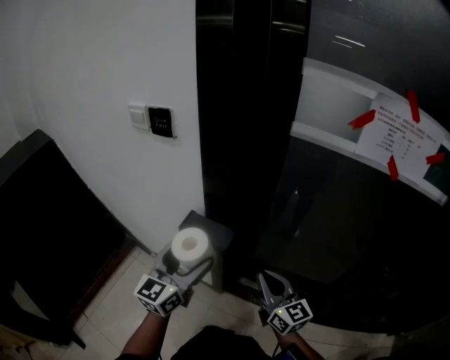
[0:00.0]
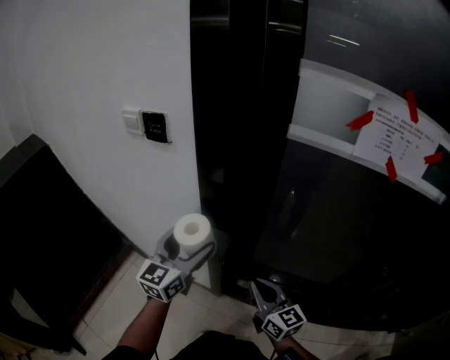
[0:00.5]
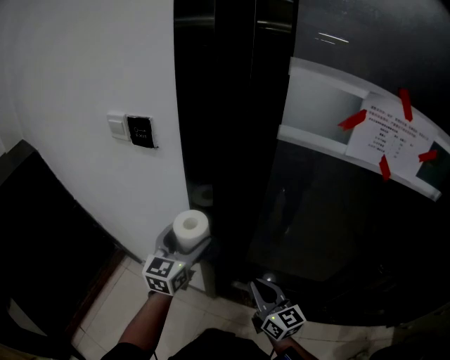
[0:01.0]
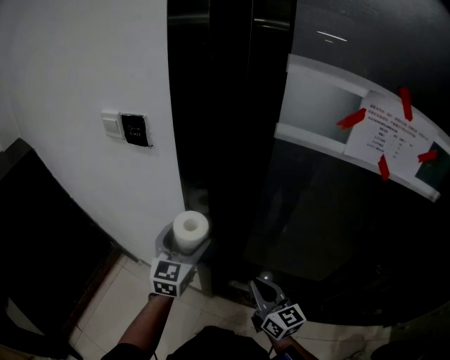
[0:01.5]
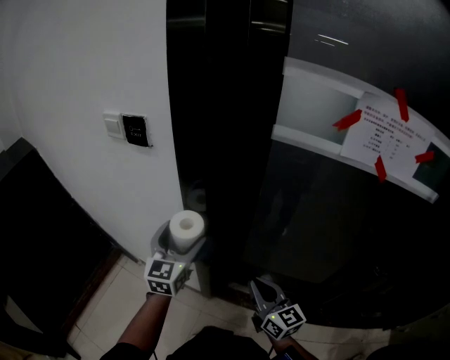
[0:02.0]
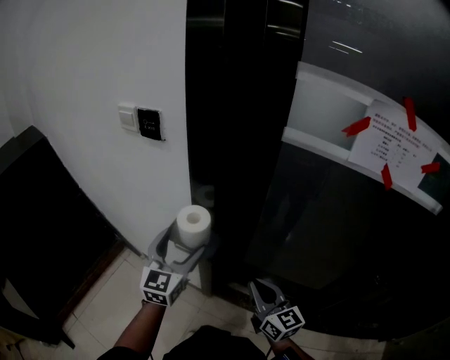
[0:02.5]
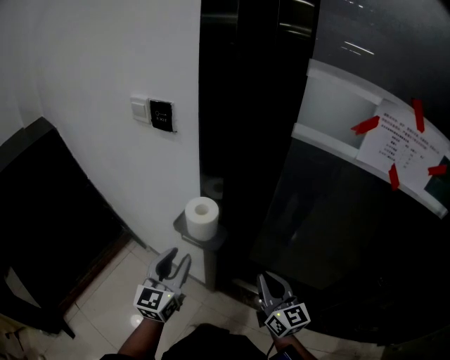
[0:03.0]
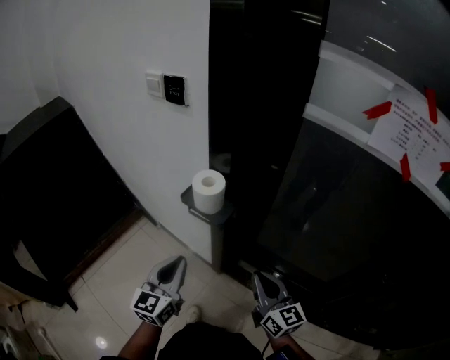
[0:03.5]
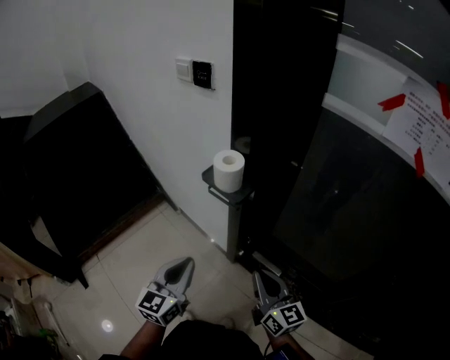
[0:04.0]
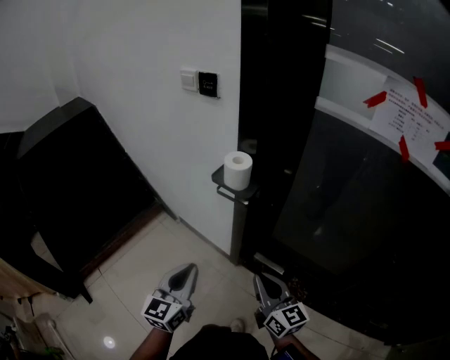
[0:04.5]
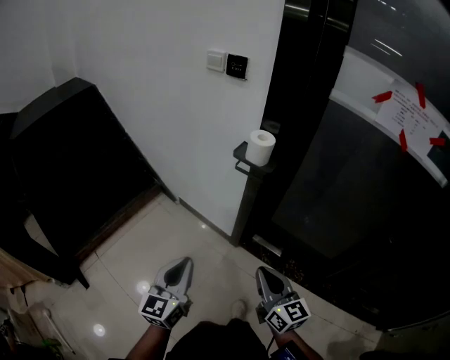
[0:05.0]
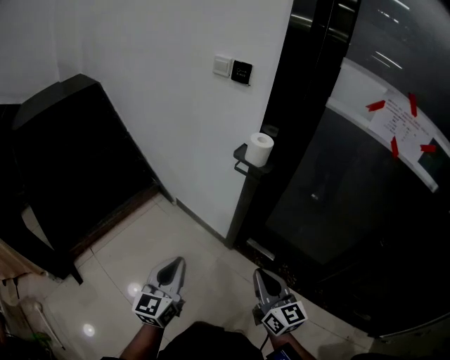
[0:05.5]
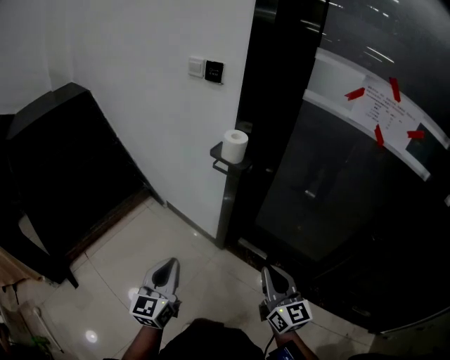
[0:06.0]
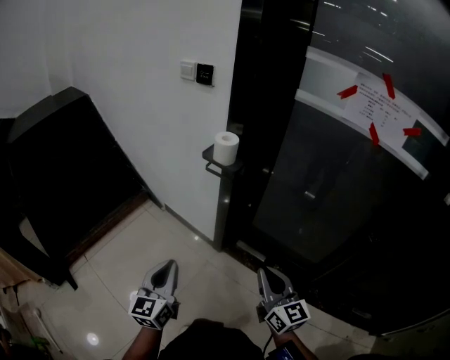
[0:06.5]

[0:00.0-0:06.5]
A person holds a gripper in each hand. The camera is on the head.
0:00.0 to 0:02.0: The left gripper goes roughly 10 cm forward.
0:02.0 to 0:04.5: The left gripper is displaced backward by about 30 cm, and closes its fingers. Meanwhile the right gripper is displaced backward and to the left by some 20 cm.
0:04.5 to 0:06.5: Both grippers travel together backward, about 10 cm. The left gripper moves approximately 10 cm to the left and comes back.

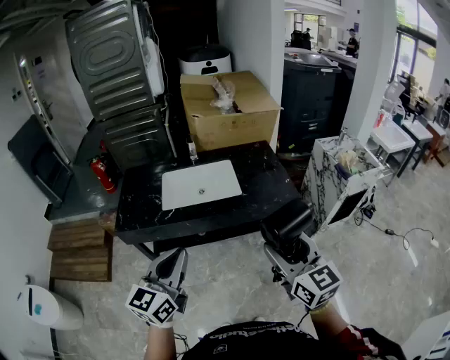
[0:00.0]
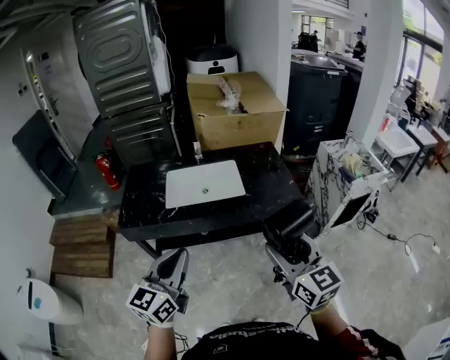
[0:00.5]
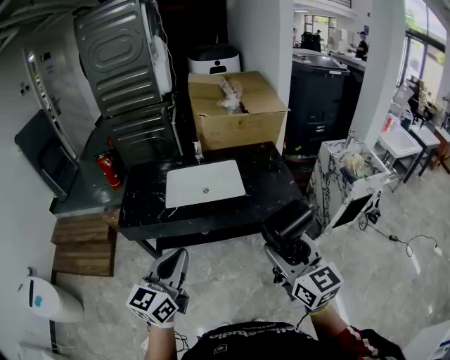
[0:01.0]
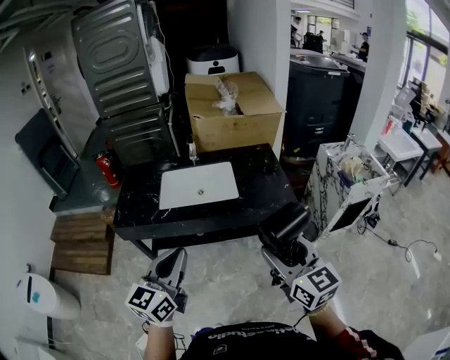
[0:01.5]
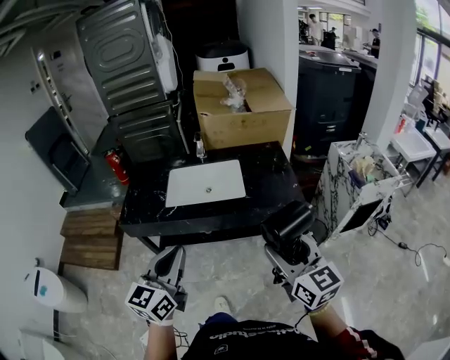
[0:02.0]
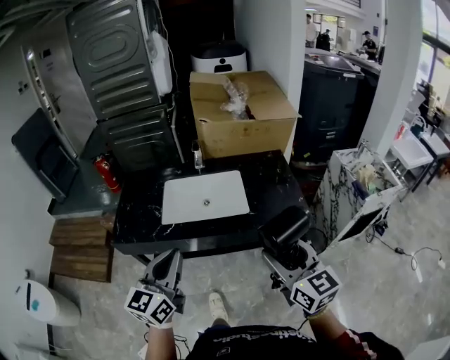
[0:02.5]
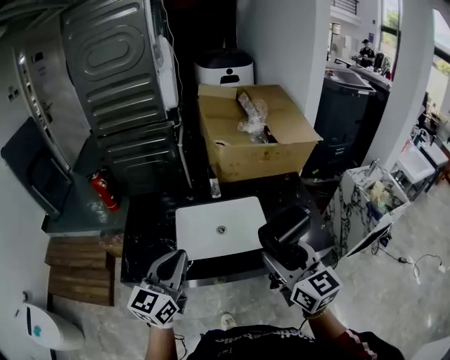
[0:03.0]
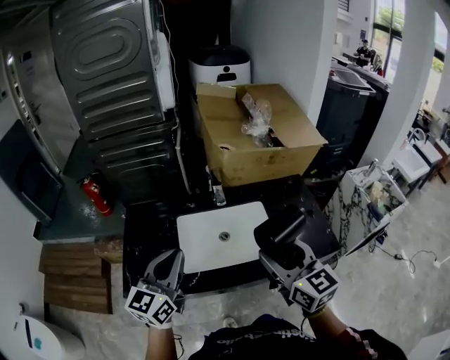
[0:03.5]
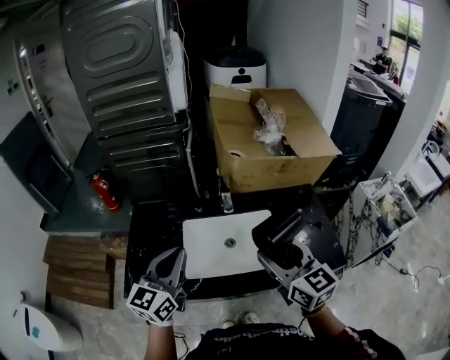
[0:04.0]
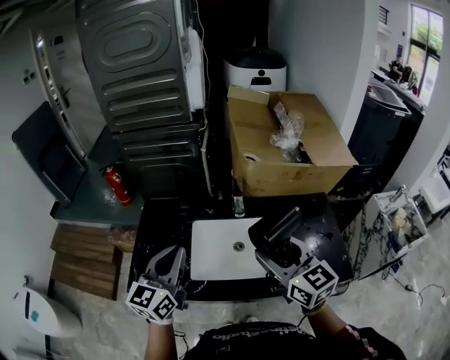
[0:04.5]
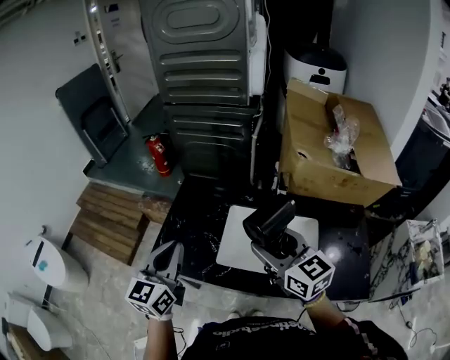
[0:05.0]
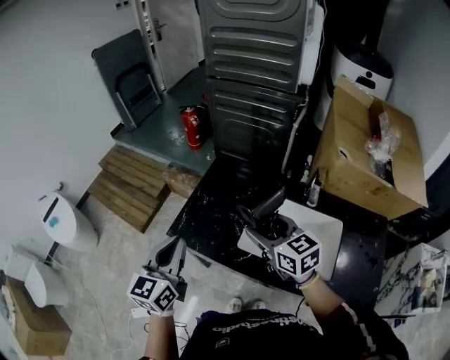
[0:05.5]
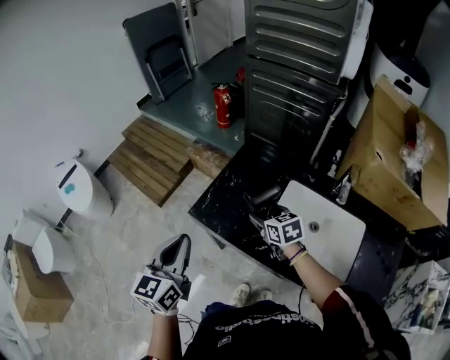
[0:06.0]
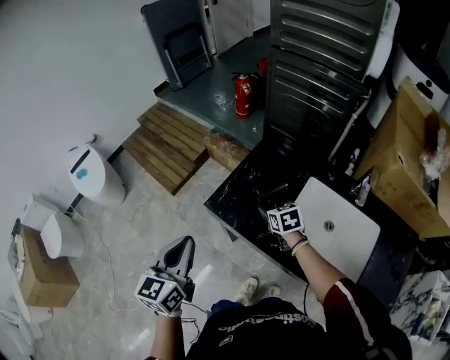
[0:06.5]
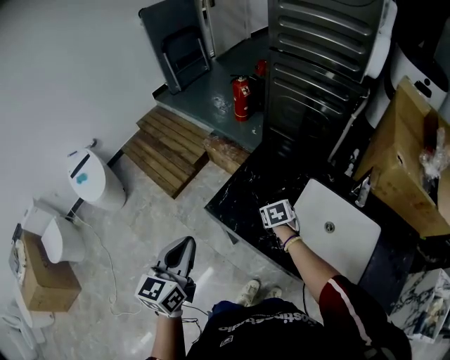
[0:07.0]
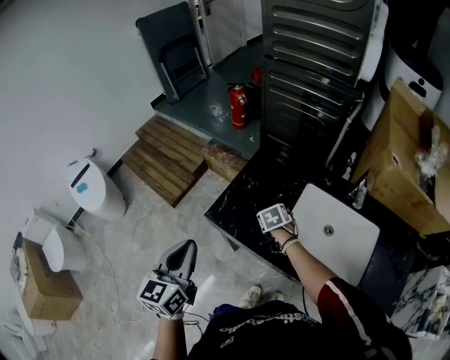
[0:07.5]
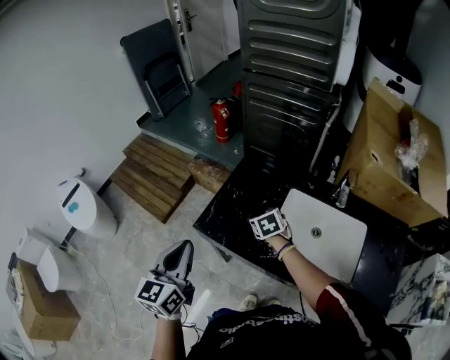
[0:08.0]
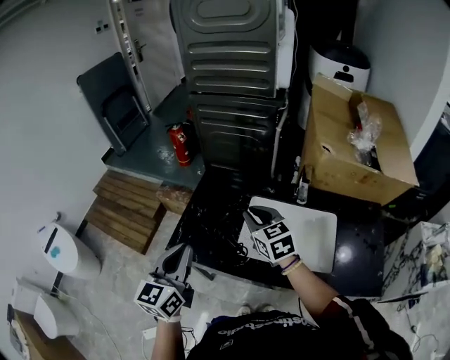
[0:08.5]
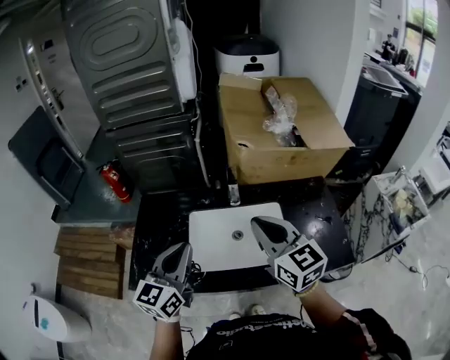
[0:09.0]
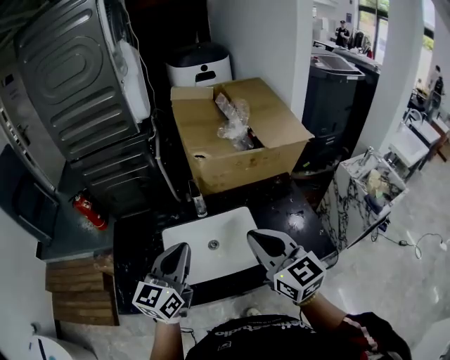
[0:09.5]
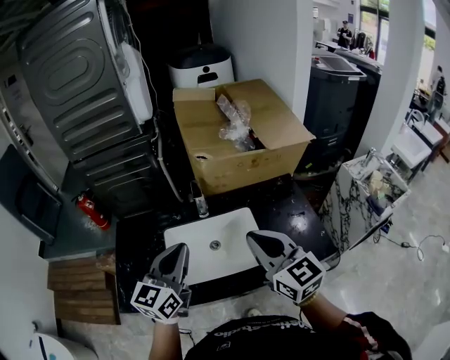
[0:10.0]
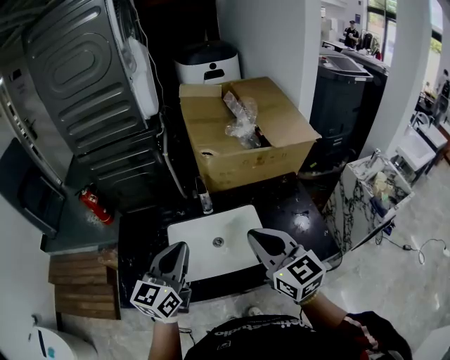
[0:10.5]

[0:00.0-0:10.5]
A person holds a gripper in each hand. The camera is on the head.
0:00.0 to 0:02.0: The grippers both shift to the right by approximately 5 cm.
0:02.0 to 0:04.0: The pair of grippers is taken forward and to the left, approximately 40 cm.
0:04.0 to 0:06.5: The right gripper ends up about 50 cm from where it was, and tilts its fingers roughly 40 degrees downward. The left gripper ends up roughly 35 cm from where it was, and turns by approximately 50 degrees.
0:06.5 to 0:08.5: The left gripper shifts some 15 cm to the right and upward, and changes its angle by about 20 degrees. The right gripper is displaced upward and to the right by about 25 cm, turns by roughly 30 degrees, and closes.
0:08.5 to 0:10.5: The left gripper shifts by roughly 30 cm, and rotates some 30 degrees; the right gripper moves some 35 cm, and rotates about 30 degrees.

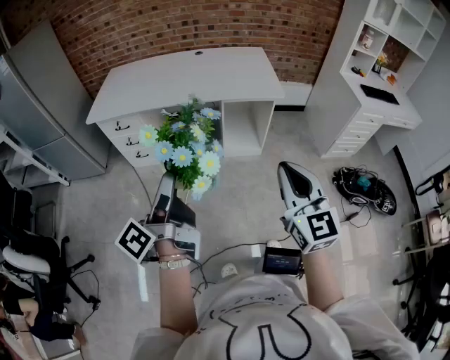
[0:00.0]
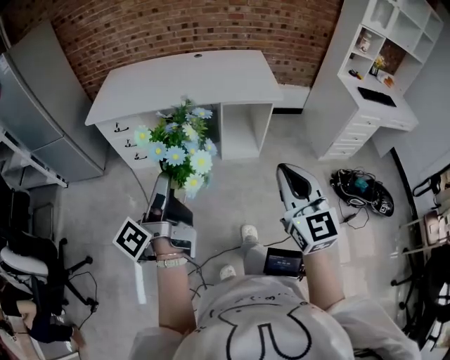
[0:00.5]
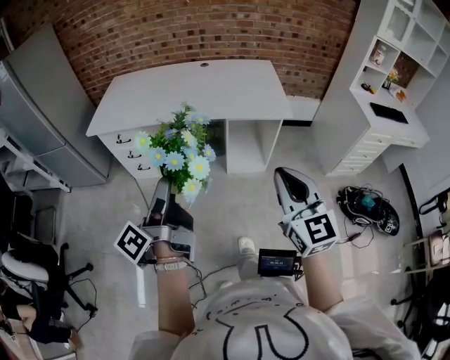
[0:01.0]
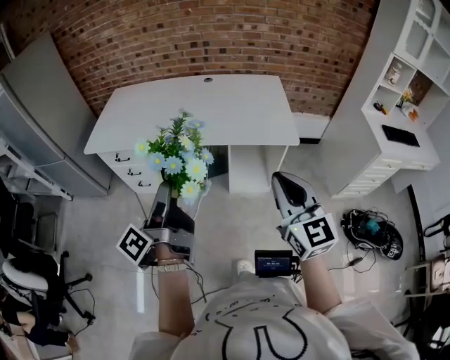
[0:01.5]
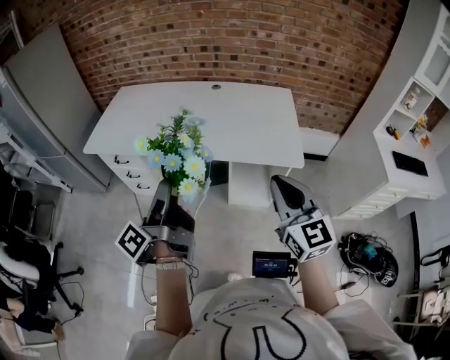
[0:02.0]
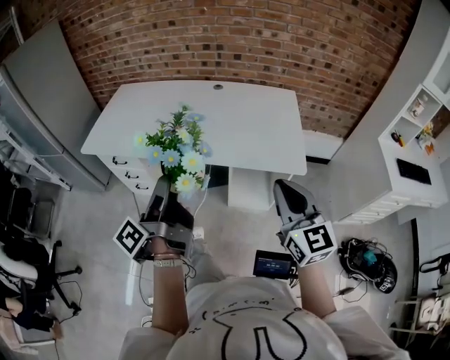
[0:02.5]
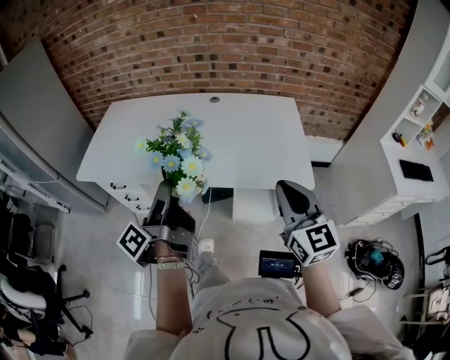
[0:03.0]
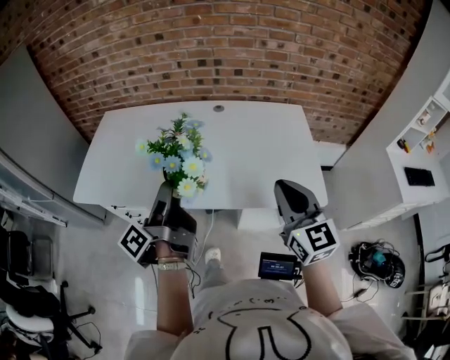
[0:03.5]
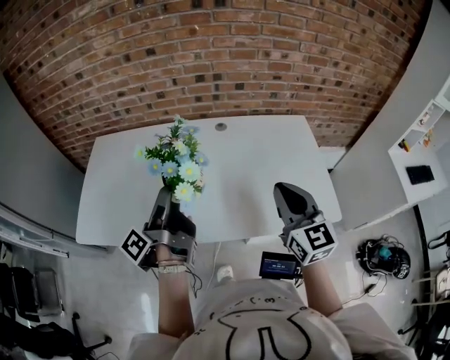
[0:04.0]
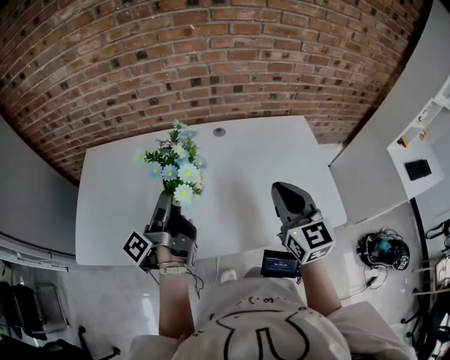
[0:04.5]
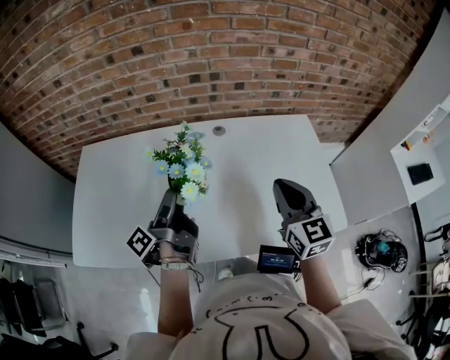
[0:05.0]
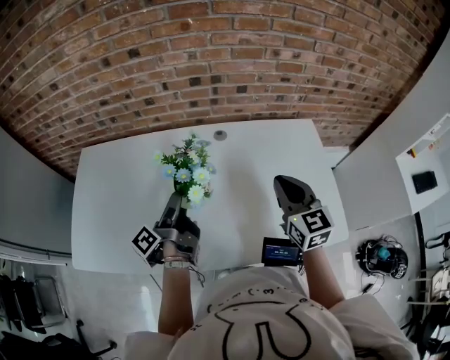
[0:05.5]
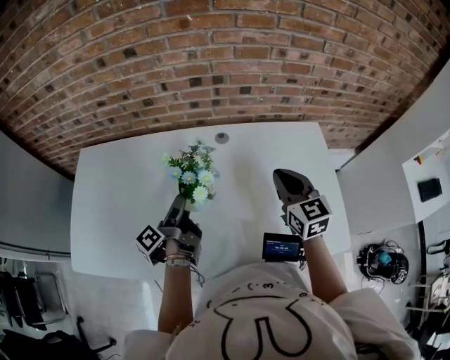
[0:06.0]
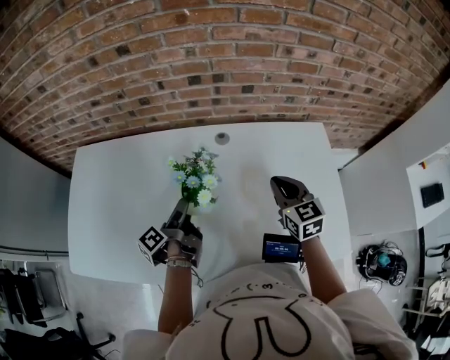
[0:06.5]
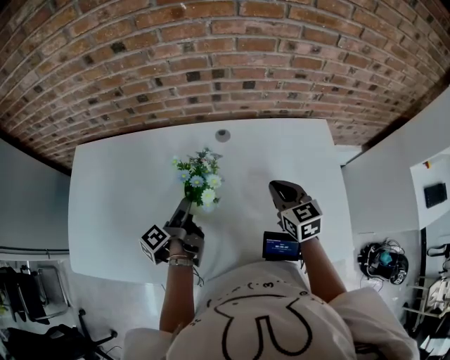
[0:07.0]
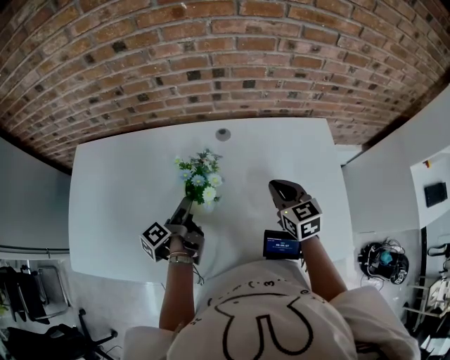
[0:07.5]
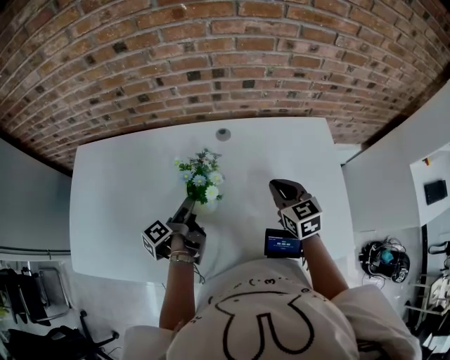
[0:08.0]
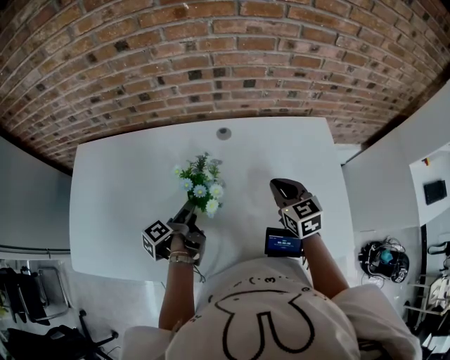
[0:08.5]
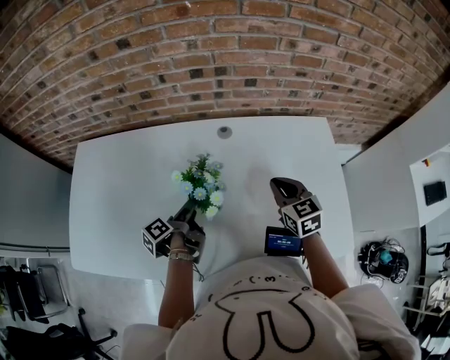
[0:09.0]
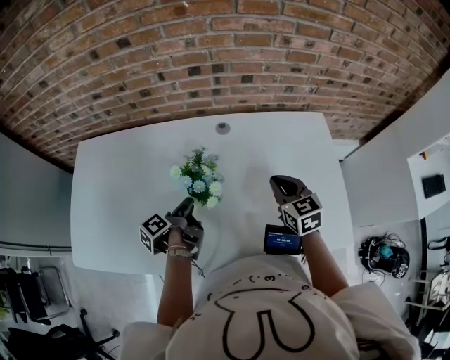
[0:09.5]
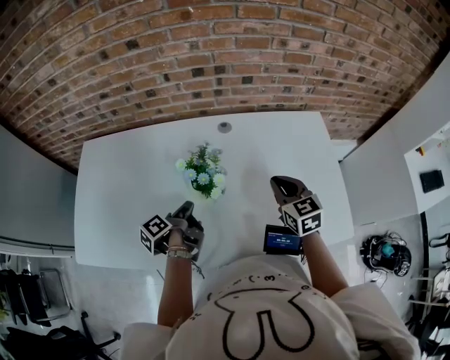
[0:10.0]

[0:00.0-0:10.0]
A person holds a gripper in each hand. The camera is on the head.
0:00.0 to 0:02.0: The right gripper changes place by roughly 35 cm.
0:02.0 to 0:04.0: The right gripper ends up roughly 35 cm from where it was.
0:04.0 to 0:06.0: The right gripper changes place by approximately 25 cm.
0:06.0 to 0:08.0: The right gripper shifts some 10 cm downward.
0:08.0 to 0:10.0: The right gripper shifts by roughly 5 cm.
